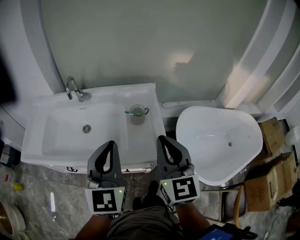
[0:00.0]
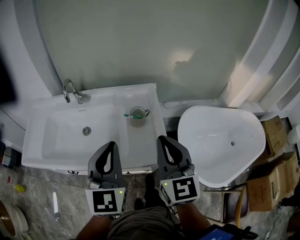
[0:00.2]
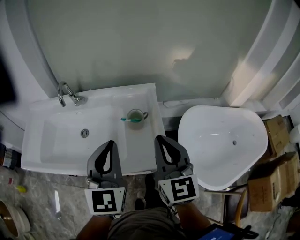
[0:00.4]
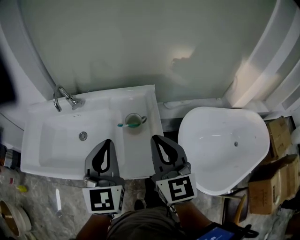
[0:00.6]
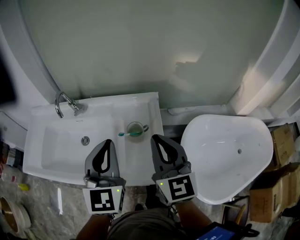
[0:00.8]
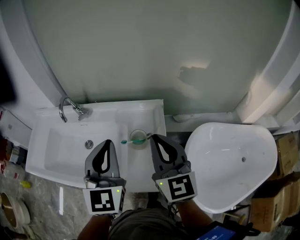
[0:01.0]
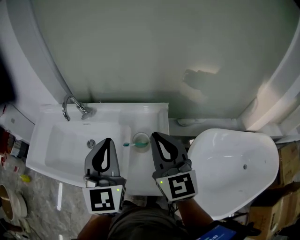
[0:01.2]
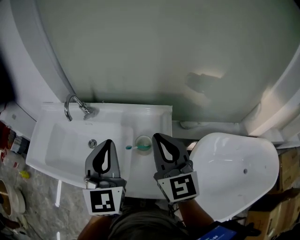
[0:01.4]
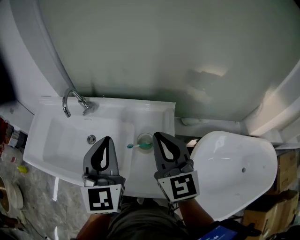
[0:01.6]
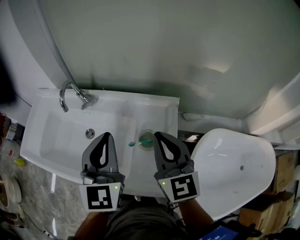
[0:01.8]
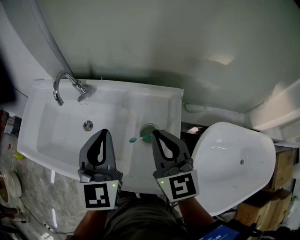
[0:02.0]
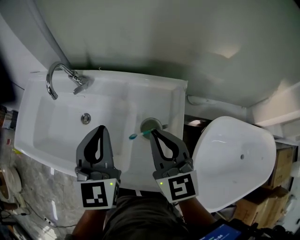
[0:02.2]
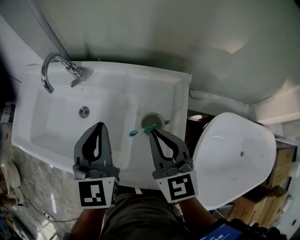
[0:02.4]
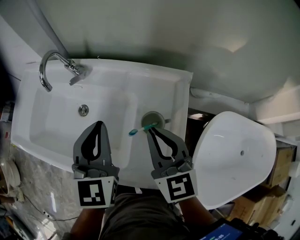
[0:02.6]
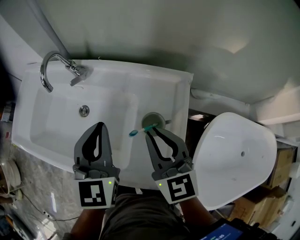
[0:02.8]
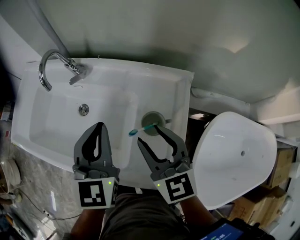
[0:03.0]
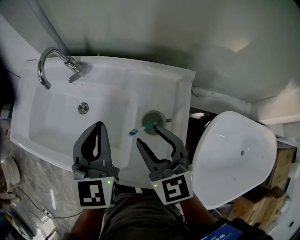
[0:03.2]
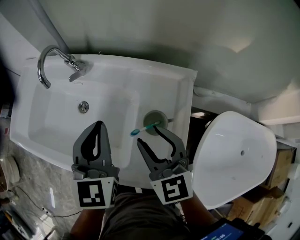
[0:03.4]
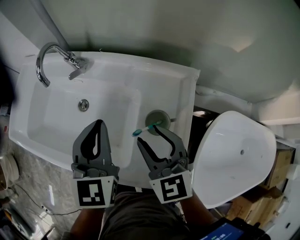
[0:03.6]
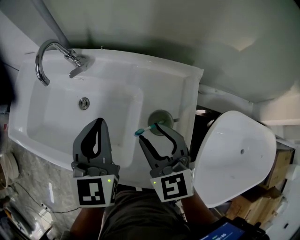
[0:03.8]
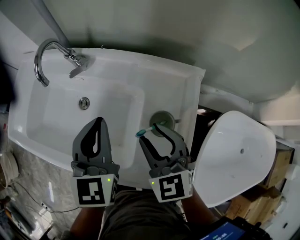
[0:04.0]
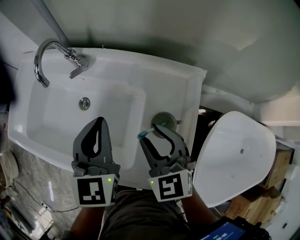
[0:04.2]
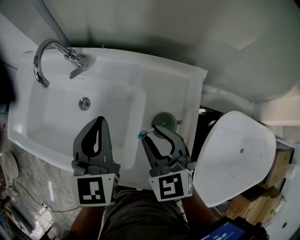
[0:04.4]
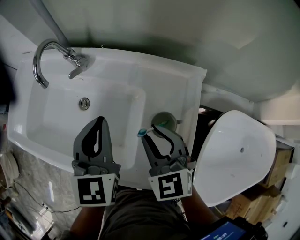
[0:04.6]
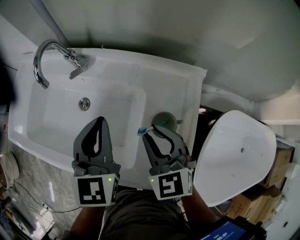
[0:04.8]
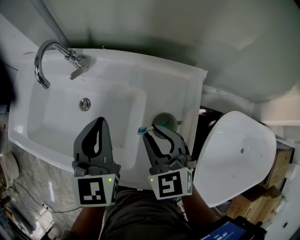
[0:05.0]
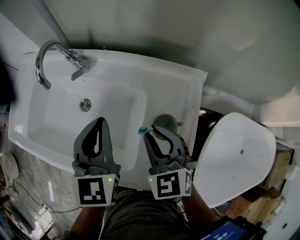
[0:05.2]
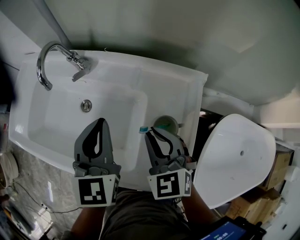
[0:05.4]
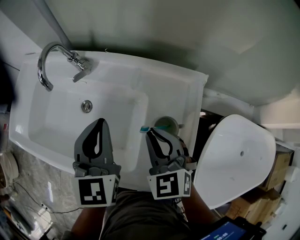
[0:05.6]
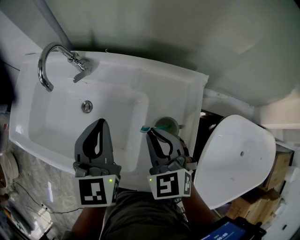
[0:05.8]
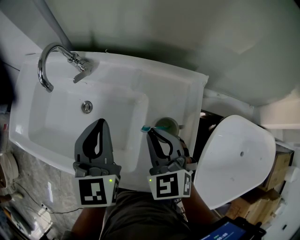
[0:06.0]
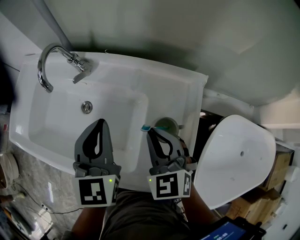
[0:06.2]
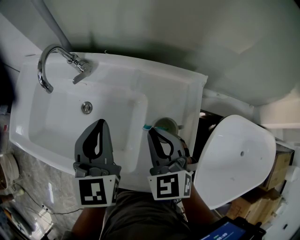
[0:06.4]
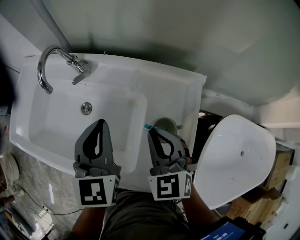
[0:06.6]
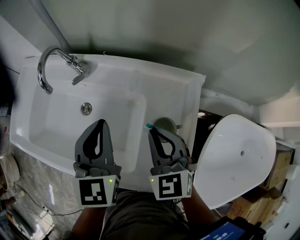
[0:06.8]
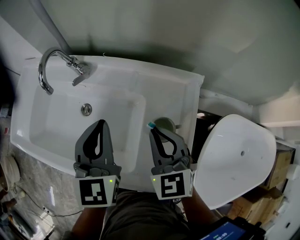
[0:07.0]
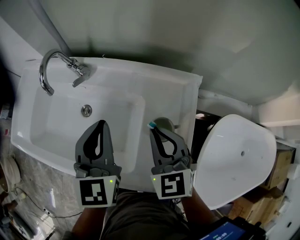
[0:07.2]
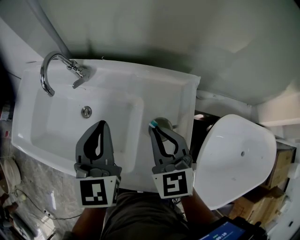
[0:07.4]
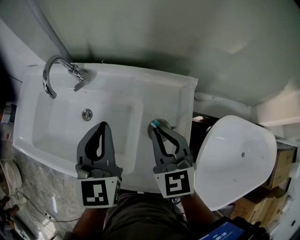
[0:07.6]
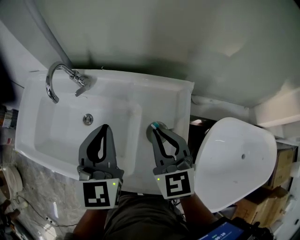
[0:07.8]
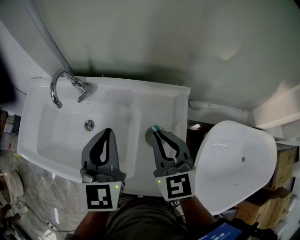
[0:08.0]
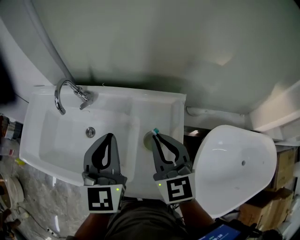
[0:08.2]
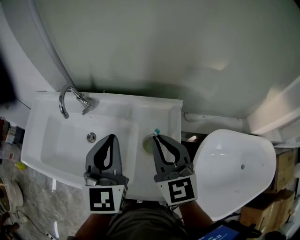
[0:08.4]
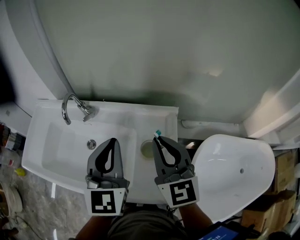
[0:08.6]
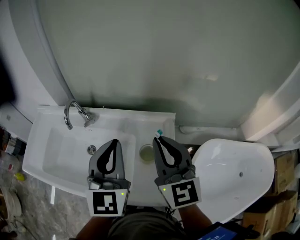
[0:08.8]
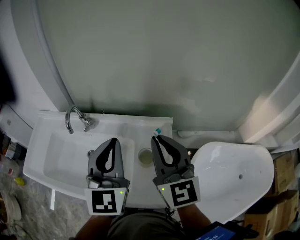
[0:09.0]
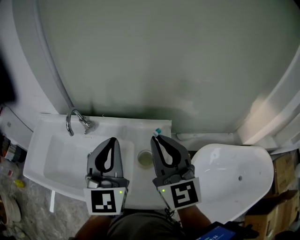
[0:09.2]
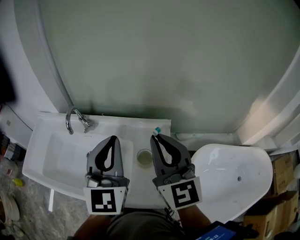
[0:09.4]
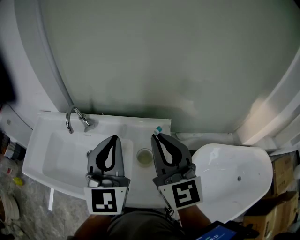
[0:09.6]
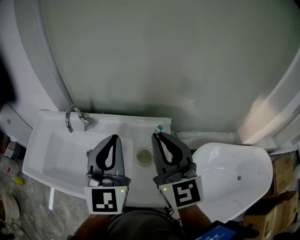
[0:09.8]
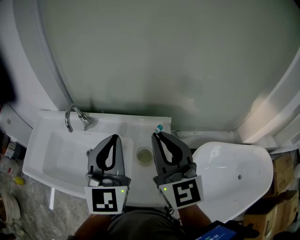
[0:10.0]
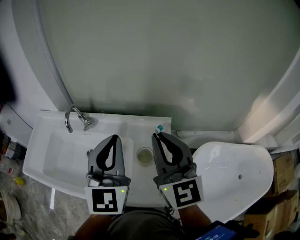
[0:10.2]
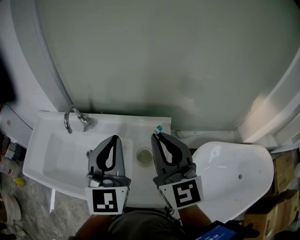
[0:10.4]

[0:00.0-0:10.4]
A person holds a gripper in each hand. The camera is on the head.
0:00.0 to 0:01.4: Both grippers move forward, approximately 20 cm.
0:01.4 to 0:03.0: The right gripper heads downward and to the left, covering some 15 cm, rotates approximately 20 degrees, and opens; the left gripper moves downward and forward, roughly 15 cm.
0:03.0 to 0:04.4: The right gripper shifts by some 5 cm; the left gripper ends up about 5 cm from where it was.
0:04.4 to 0:06.0: The right gripper closes its fingers.
0:06.0 to 0:07.4: There are only small adjustments of the grippers.
0:07.4 to 0:09.0: The two grippers go about 20 cm upward. The right gripper swivels roughly 30 degrees.
0:09.0 to 0:10.4: The grippers stay close to where they were, moving slightly.

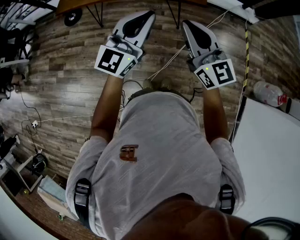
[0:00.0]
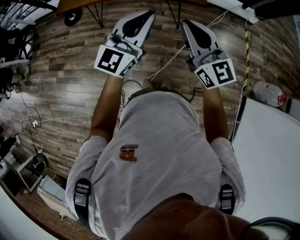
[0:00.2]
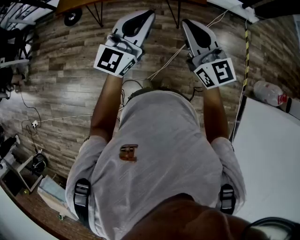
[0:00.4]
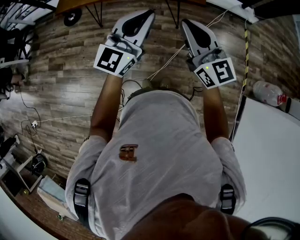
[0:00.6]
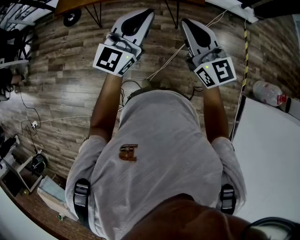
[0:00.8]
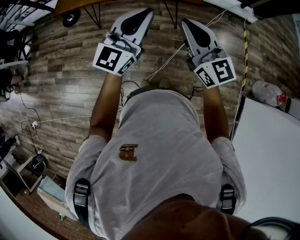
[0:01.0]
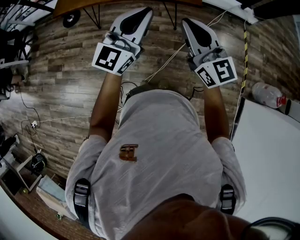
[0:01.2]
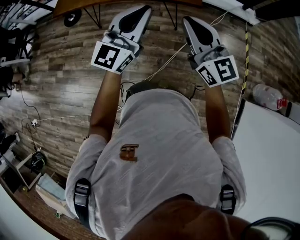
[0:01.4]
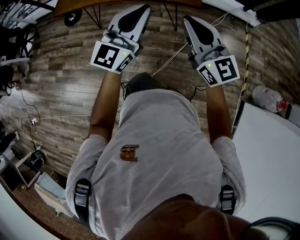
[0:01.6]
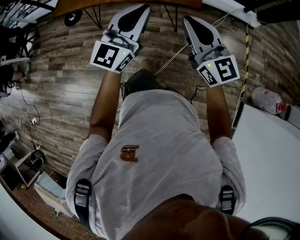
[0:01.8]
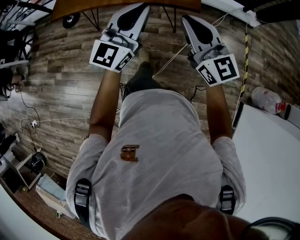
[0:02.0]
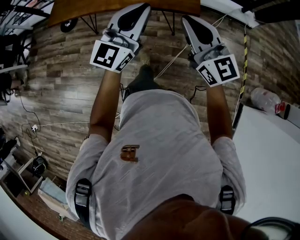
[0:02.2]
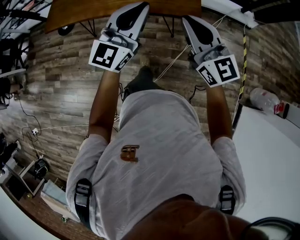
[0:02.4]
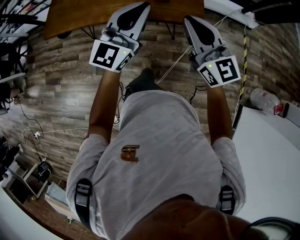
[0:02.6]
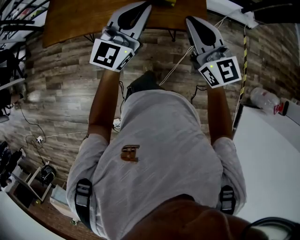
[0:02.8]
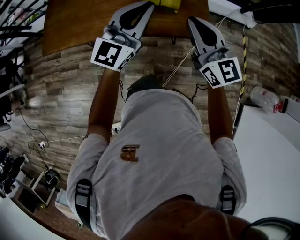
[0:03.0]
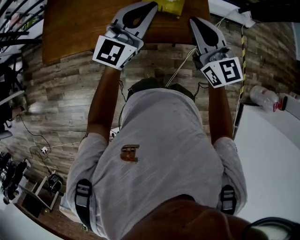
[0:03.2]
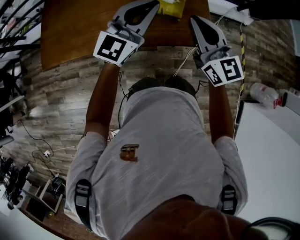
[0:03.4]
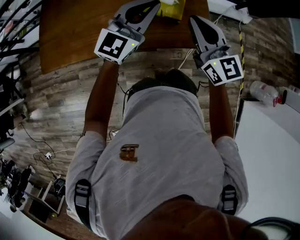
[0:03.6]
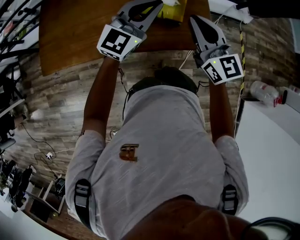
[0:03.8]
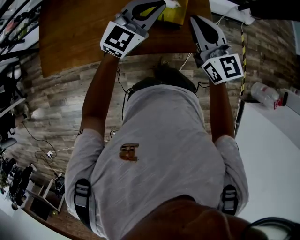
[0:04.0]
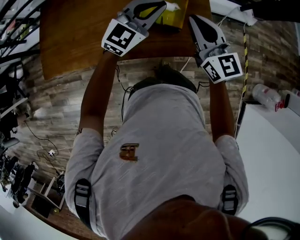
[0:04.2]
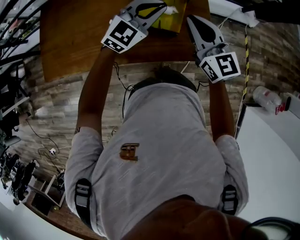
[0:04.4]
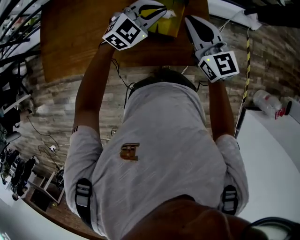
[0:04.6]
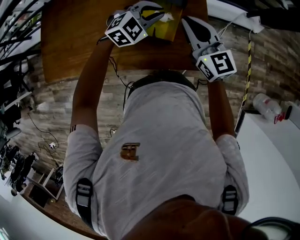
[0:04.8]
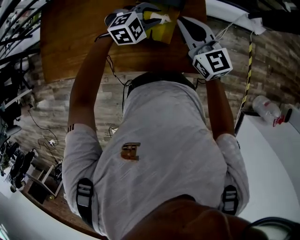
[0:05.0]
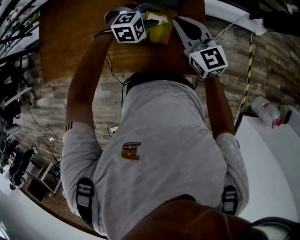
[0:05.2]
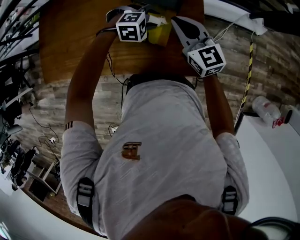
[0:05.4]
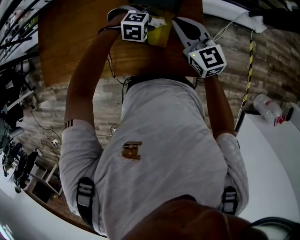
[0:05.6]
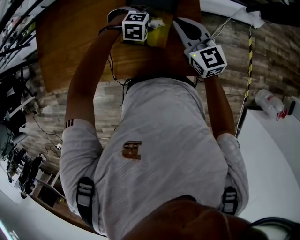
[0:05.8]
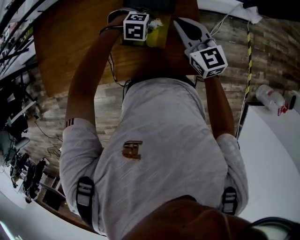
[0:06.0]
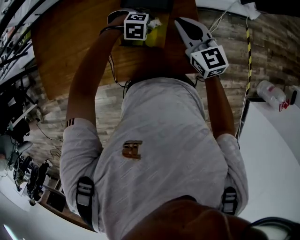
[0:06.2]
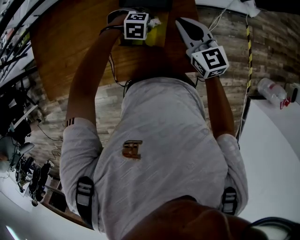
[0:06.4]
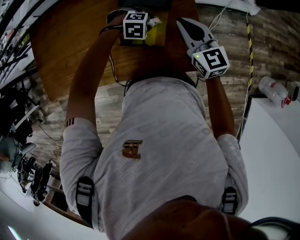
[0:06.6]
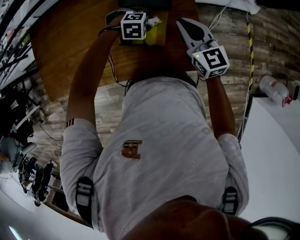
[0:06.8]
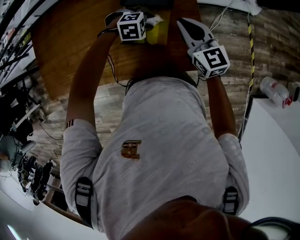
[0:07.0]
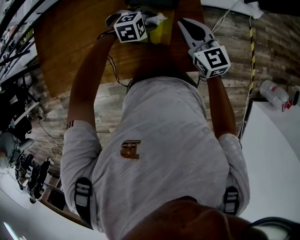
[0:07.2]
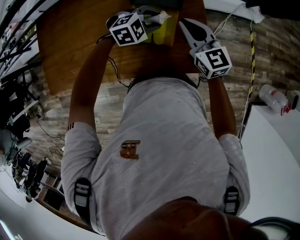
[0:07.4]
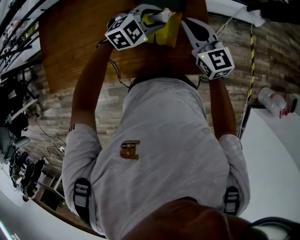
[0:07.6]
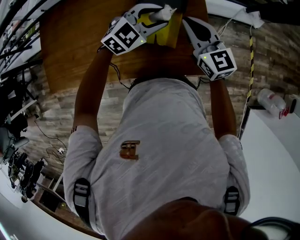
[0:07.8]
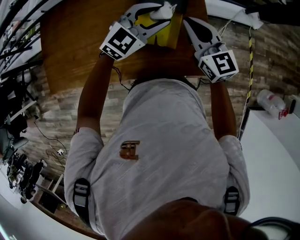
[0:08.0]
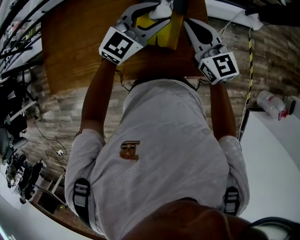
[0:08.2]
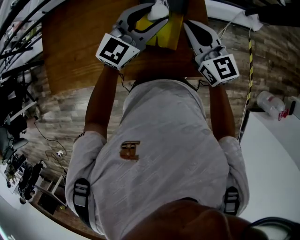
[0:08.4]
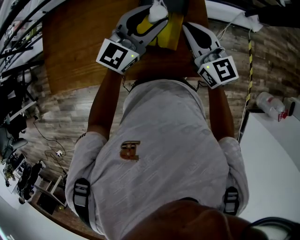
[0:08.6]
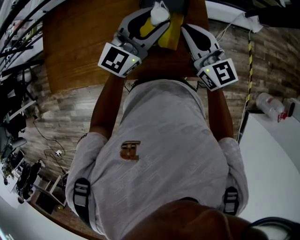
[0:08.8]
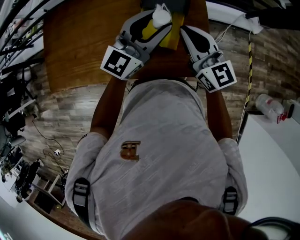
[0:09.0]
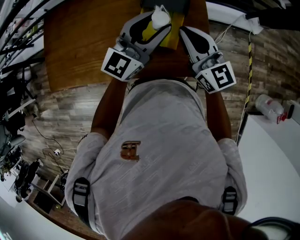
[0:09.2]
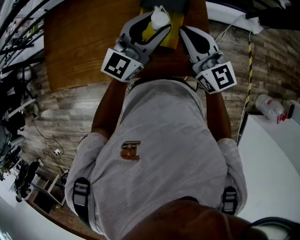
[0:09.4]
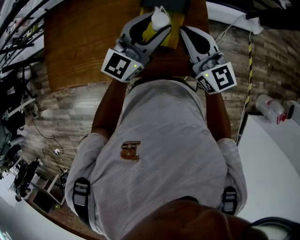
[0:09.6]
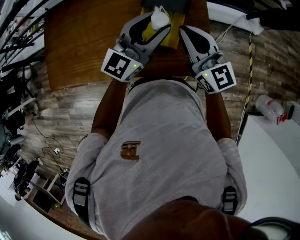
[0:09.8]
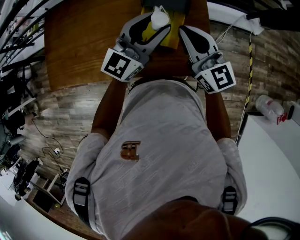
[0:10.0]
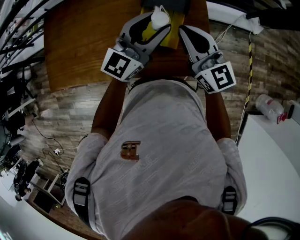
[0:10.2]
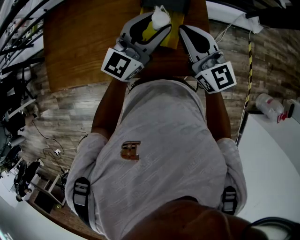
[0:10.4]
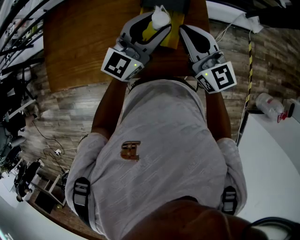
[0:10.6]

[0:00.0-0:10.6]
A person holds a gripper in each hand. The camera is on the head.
0:00.0 to 0:01.6: The left gripper heads to the right and forward, covering some 10 cm. The right gripper is displaced to the right by approximately 10 cm.
0:01.6 to 0:03.0: The two grippers go some 40 cm forward.
0:03.0 to 0:04.6: The right gripper shifts about 25 cm forward. Meanwhile the left gripper travels forward and downward by about 30 cm, and points its fingers some 30 degrees further downward.
0:04.6 to 0:06.0: The left gripper is displaced downward and forward by some 20 cm, tips its fingers downward by some 50 degrees, and opens, while the right gripper is displaced forward and downward by roughly 15 cm.
0:06.0 to 0:07.6: The left gripper moves upward, approximately 10 cm, and tilts its fingers about 30 degrees upward.
0:07.6 to 0:09.0: The left gripper goes some 15 cm upward, and tilts its fingers roughly 50 degrees upward. Meanwhile the right gripper shifts some 10 cm upward and backward.
0:09.0 to 0:10.6: The grippers move only a little.

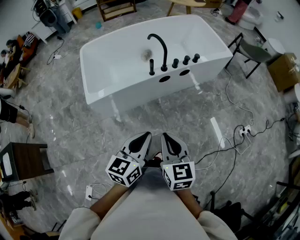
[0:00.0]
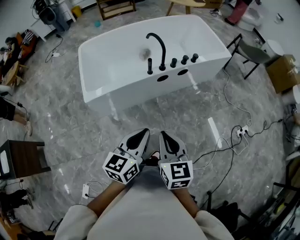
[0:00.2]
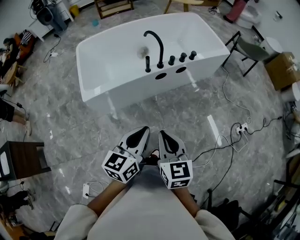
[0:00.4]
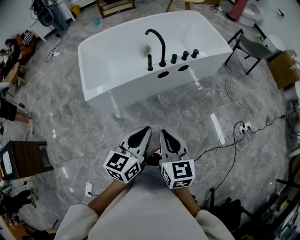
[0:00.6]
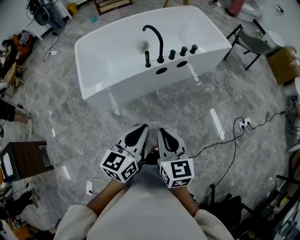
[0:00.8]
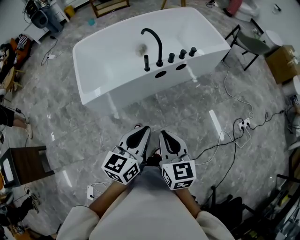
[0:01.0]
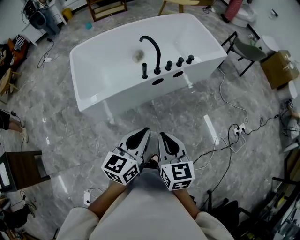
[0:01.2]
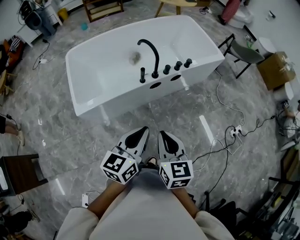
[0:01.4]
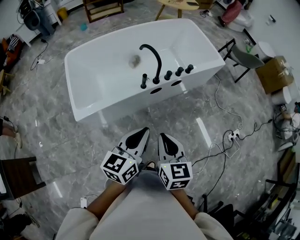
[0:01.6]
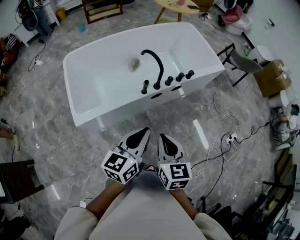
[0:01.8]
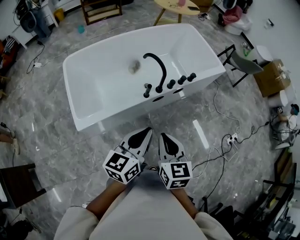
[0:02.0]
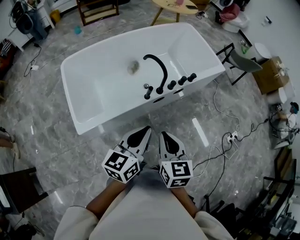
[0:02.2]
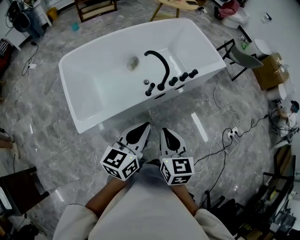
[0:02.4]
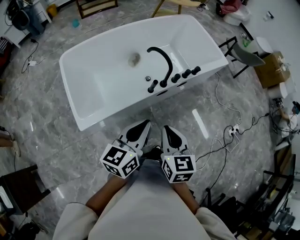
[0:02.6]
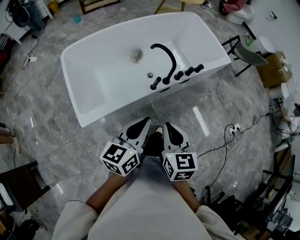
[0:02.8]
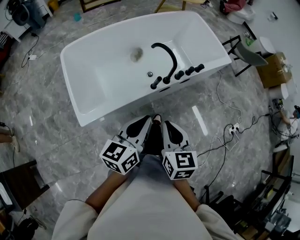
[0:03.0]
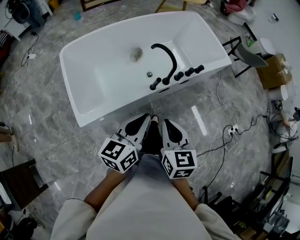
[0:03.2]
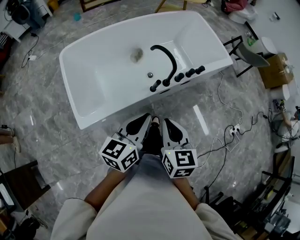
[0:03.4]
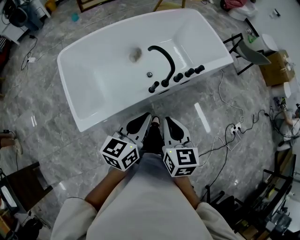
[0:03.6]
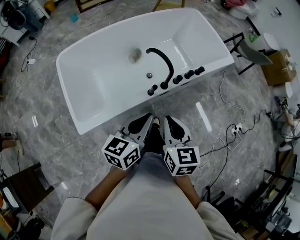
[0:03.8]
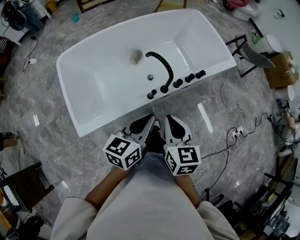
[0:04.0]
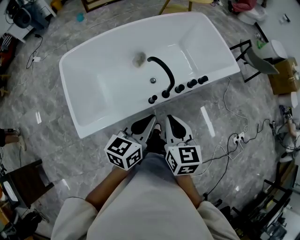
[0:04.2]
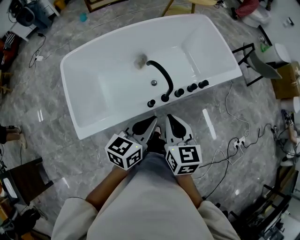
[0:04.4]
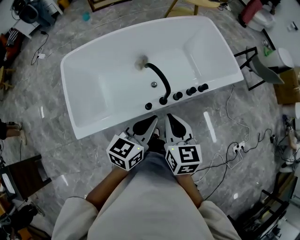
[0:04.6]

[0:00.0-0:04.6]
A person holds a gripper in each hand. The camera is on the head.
0:00.0 to 0:01.6: The grippers both shift forward by roughly 15 cm.
0:01.6 to 0:03.0: Both grippers travel together to the left and forward, some 15 cm.
0:03.0 to 0:04.6: The right gripper shifts some 20 cm forward, while the left gripper goes some 20 cm forward and to the right.
